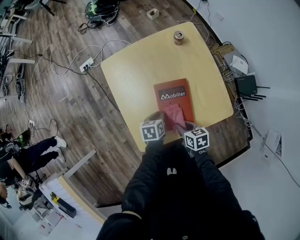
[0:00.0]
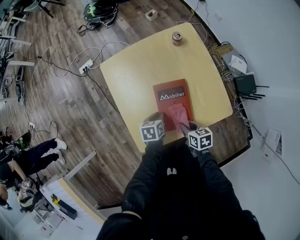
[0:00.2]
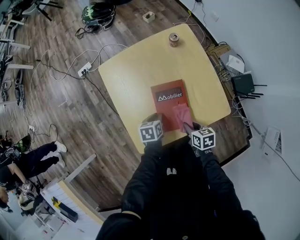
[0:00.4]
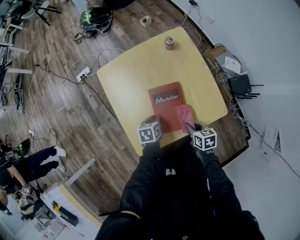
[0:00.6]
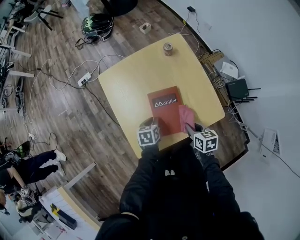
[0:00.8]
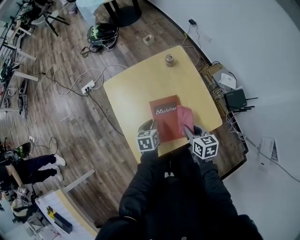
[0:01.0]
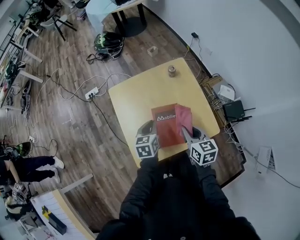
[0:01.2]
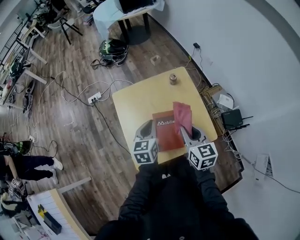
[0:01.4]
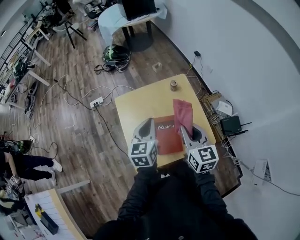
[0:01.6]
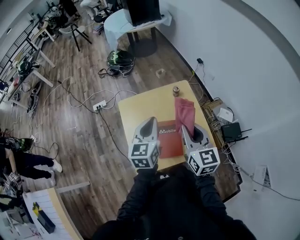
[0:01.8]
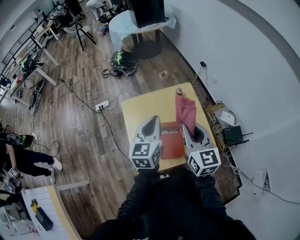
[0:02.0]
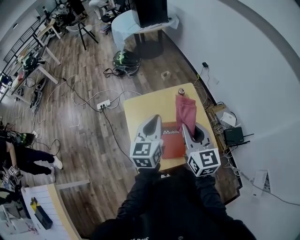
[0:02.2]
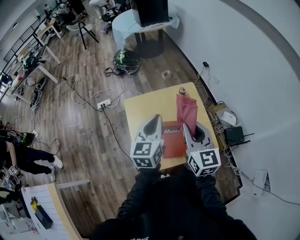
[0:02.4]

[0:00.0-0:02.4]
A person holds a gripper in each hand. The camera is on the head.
0:00.0 to 0:01.2: Both grippers move upward, some 20 cm. The left gripper changes its angle by approximately 20 degrees; the right gripper changes its angle by approximately 30 degrees.
0:01.2 to 0:02.4: The grippers both shift upward by some 25 cm. The left gripper changes its angle by roughly 30 degrees, while the right gripper changes its angle by some 30 degrees.

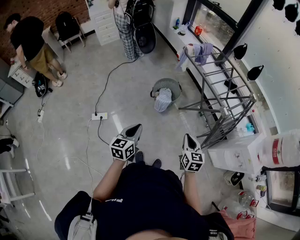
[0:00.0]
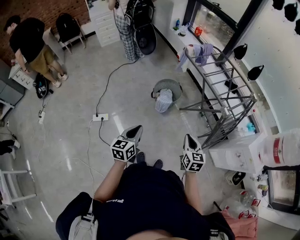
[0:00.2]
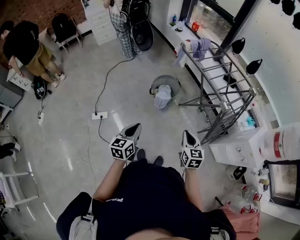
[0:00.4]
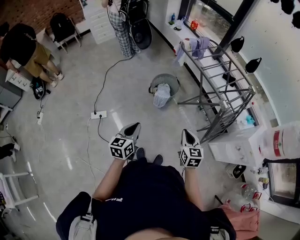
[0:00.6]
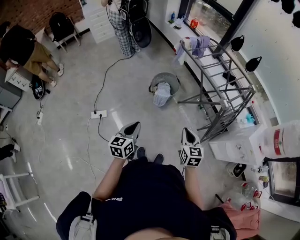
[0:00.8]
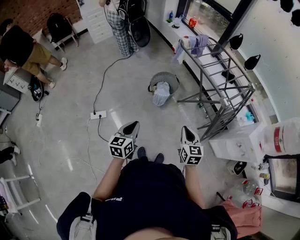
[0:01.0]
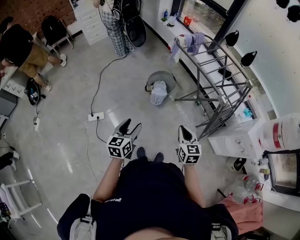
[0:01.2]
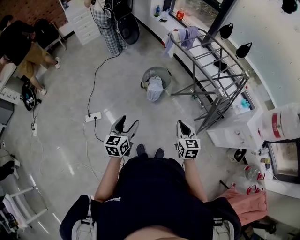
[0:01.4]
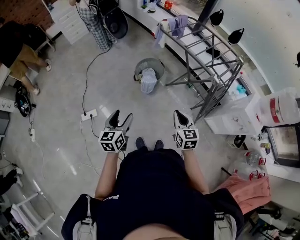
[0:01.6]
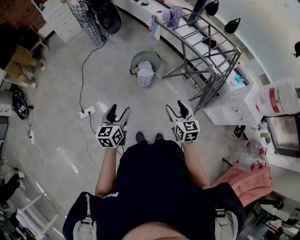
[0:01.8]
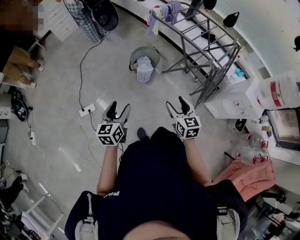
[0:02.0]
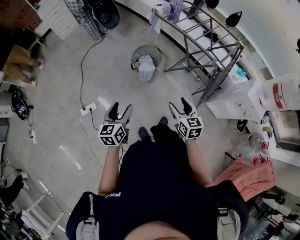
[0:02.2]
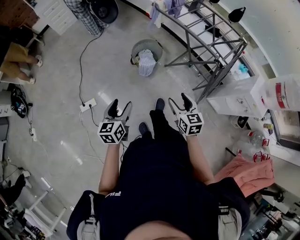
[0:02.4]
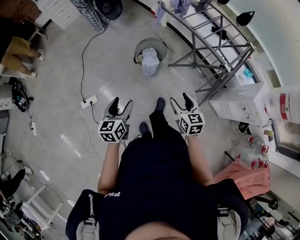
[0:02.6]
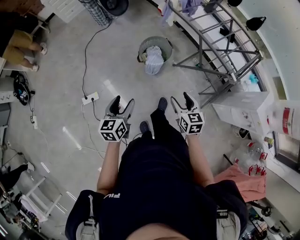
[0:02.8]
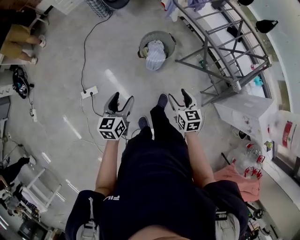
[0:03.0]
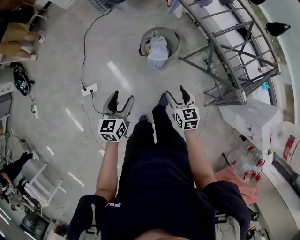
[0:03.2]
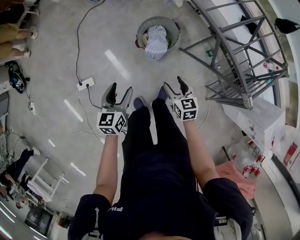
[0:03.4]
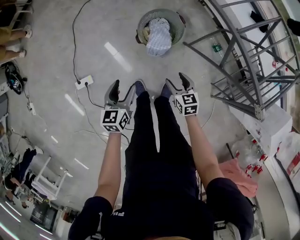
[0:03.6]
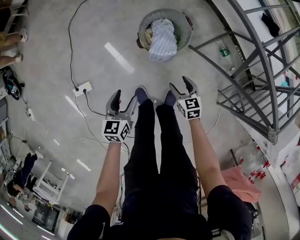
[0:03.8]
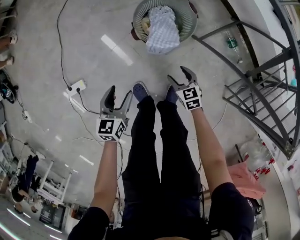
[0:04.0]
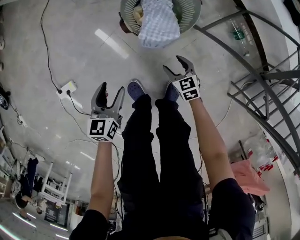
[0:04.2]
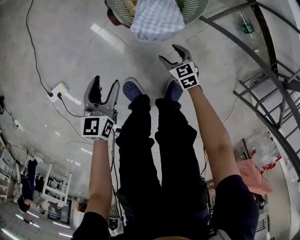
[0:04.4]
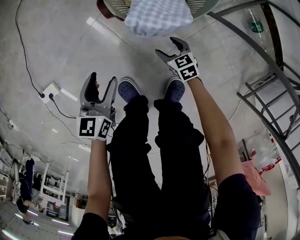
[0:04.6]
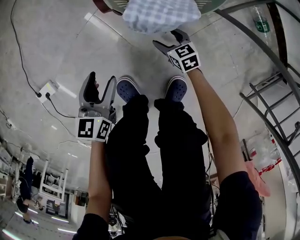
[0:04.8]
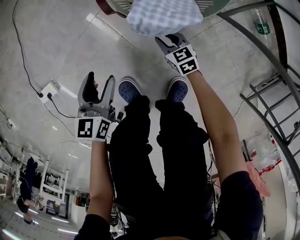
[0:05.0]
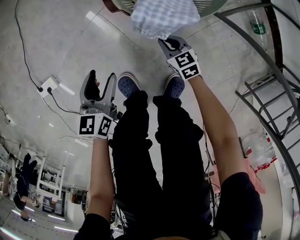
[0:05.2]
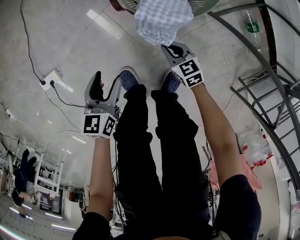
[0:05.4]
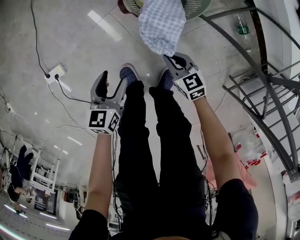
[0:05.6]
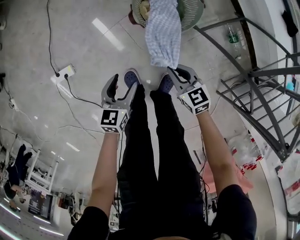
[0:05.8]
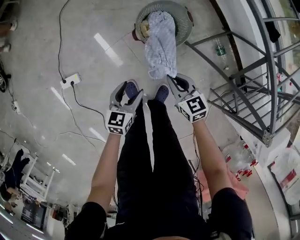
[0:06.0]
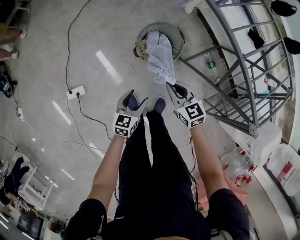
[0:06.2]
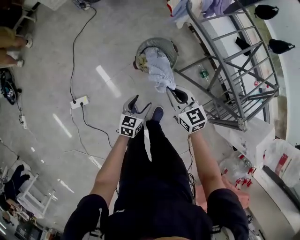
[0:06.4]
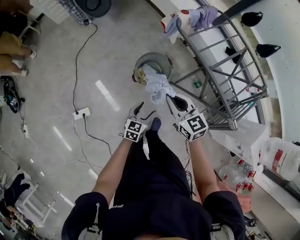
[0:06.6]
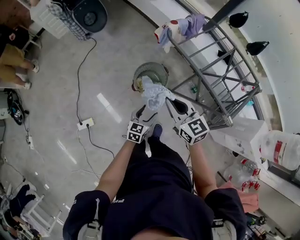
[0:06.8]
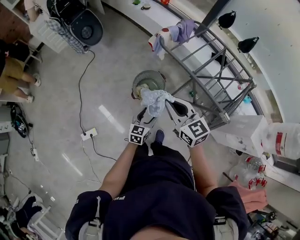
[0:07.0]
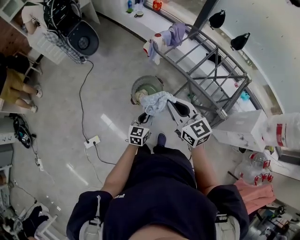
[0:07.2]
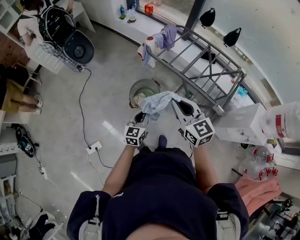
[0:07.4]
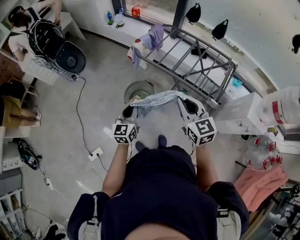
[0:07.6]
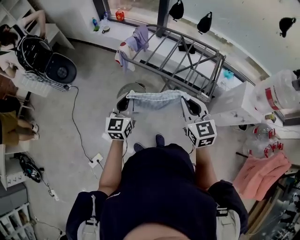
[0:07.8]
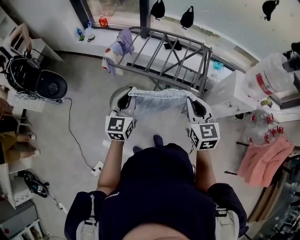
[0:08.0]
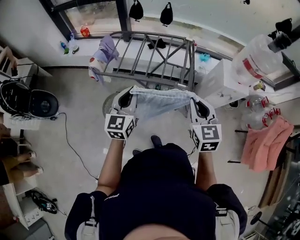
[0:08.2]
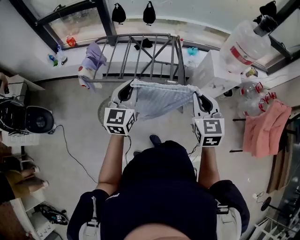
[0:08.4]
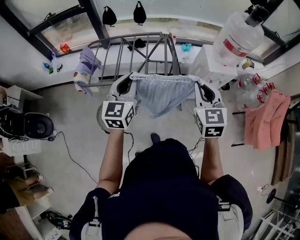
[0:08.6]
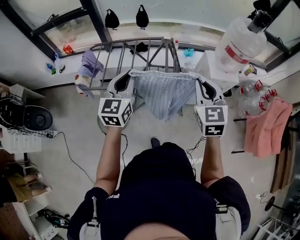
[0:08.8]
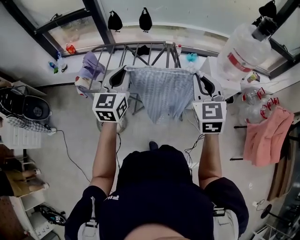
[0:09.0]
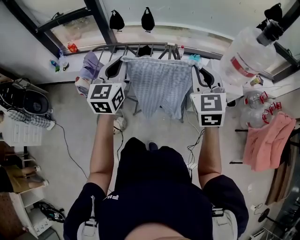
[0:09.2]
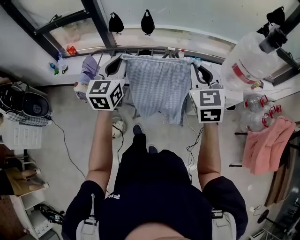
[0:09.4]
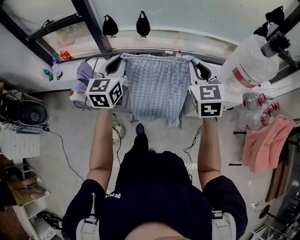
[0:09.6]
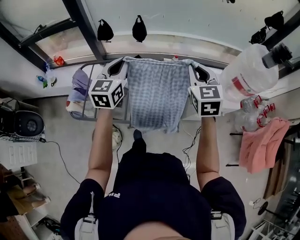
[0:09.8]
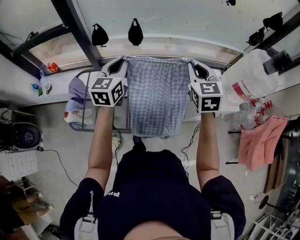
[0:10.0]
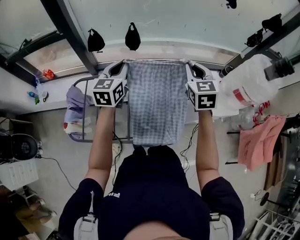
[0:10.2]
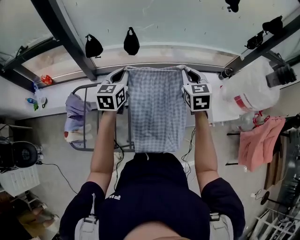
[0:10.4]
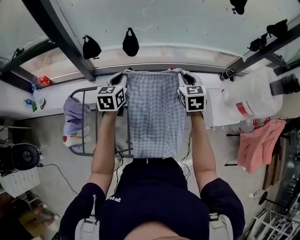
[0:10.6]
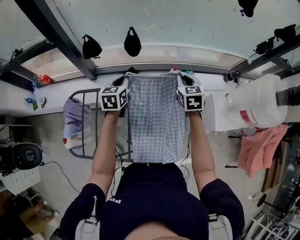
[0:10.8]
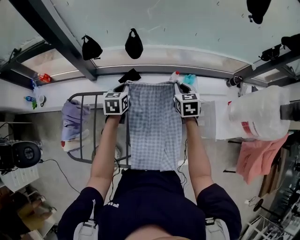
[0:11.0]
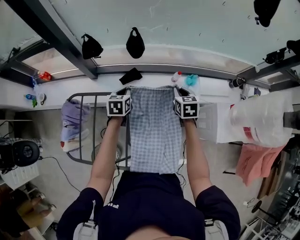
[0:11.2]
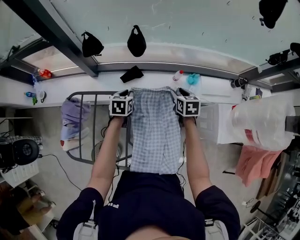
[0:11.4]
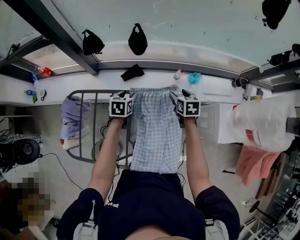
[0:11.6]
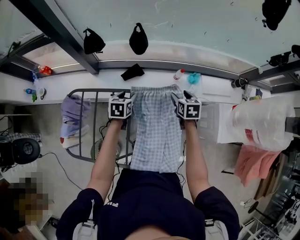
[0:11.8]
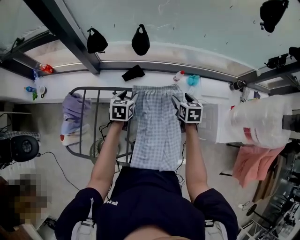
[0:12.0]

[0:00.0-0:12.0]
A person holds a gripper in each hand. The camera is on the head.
0:00.0 to 0:01.6: The grippers both shift to the left by approximately 5 cm. The left gripper opens.
0:01.6 to 0:03.0: The grippers both shift forward and downward by approximately 20 cm. The right gripper opens up.
0:03.0 to 0:04.4: The two grippers go some 60 cm downward. The right gripper rotates about 20 degrees.
0:04.4 to 0:06.0: The right gripper shifts some 40 cm upward, and closes its fingers, while the left gripper shifts roughly 20 cm upward.
0:06.0 to 0:07.6: The two grippers go some 50 cm upward. The left gripper rotates some 30 degrees, and closes. Meanwhile the right gripper changes its angle by roughly 40 degrees.
0:07.6 to 0:09.0: The right gripper ends up about 35 cm from where it was, and rotates about 50 degrees; the left gripper moves roughly 40 cm, and rotates some 30 degrees.
0:09.0 to 0:10.4: The two grippers travel together, forward, approximately 40 cm.
0:10.4 to 0:12.0: The grippers both shift downward by approximately 20 cm. The left gripper turns by approximately 30 degrees, and opens its fingers; the right gripper rotates about 30 degrees, and opens.

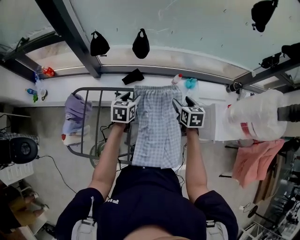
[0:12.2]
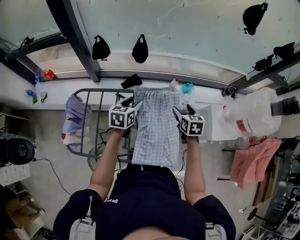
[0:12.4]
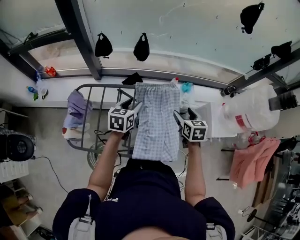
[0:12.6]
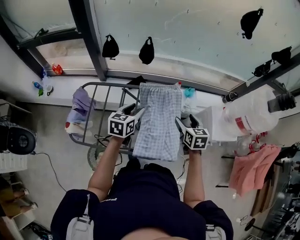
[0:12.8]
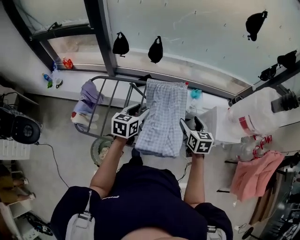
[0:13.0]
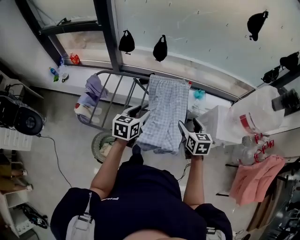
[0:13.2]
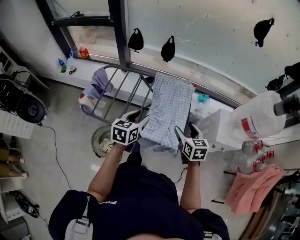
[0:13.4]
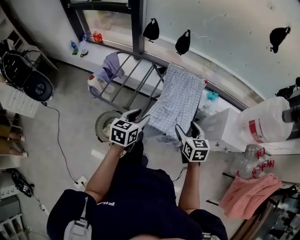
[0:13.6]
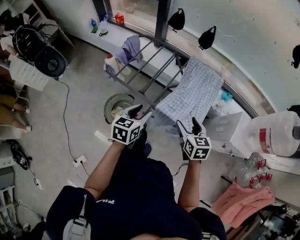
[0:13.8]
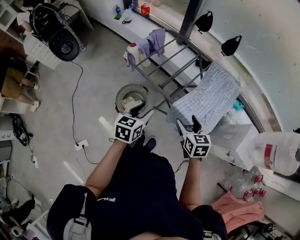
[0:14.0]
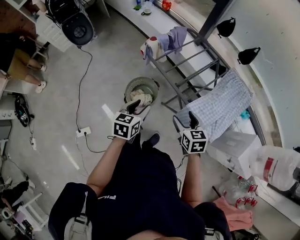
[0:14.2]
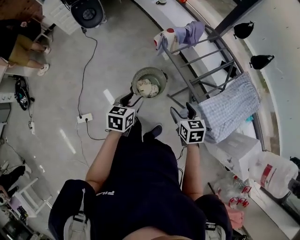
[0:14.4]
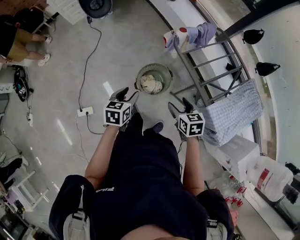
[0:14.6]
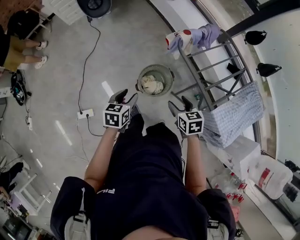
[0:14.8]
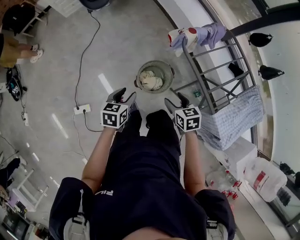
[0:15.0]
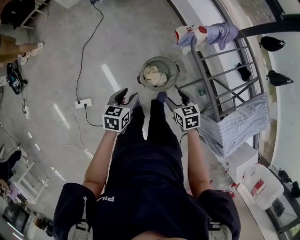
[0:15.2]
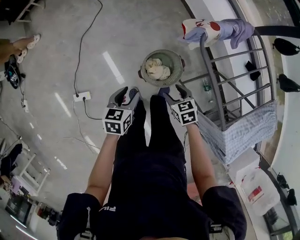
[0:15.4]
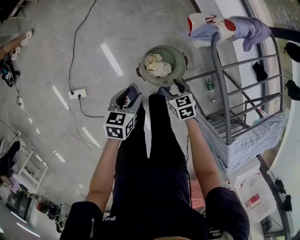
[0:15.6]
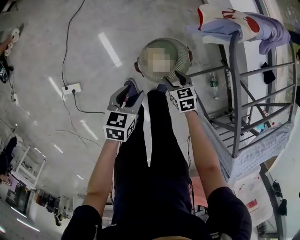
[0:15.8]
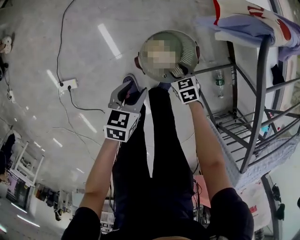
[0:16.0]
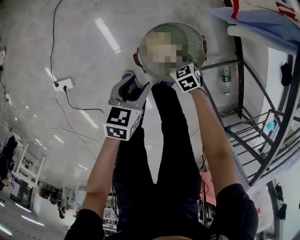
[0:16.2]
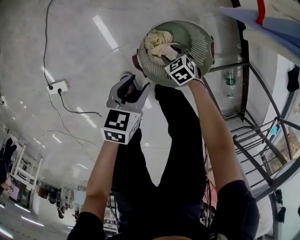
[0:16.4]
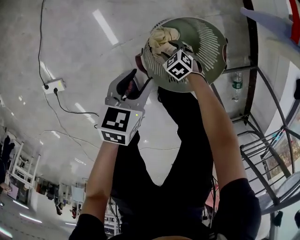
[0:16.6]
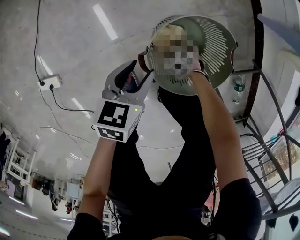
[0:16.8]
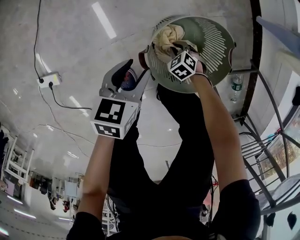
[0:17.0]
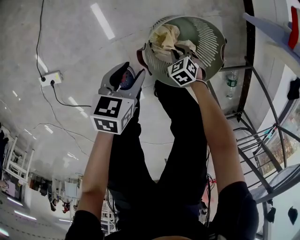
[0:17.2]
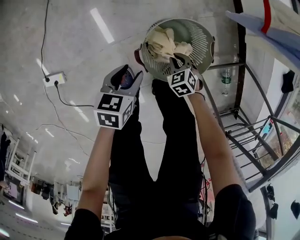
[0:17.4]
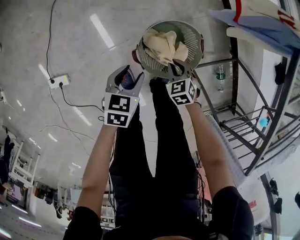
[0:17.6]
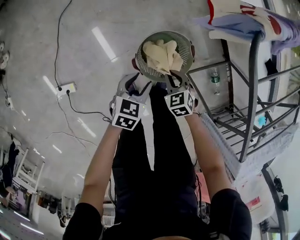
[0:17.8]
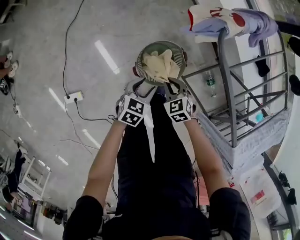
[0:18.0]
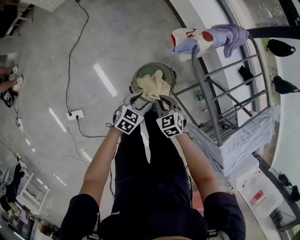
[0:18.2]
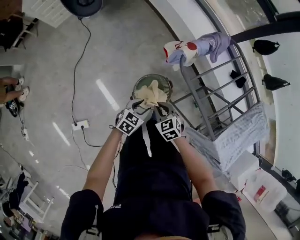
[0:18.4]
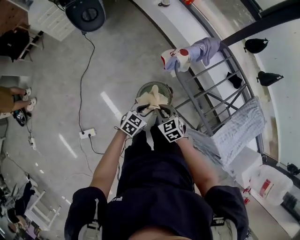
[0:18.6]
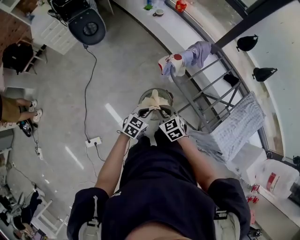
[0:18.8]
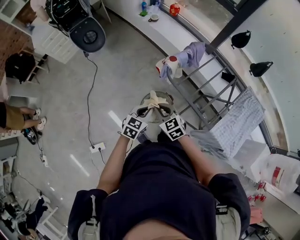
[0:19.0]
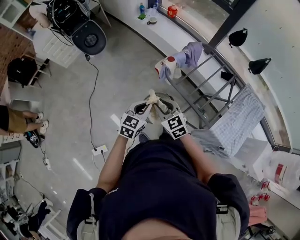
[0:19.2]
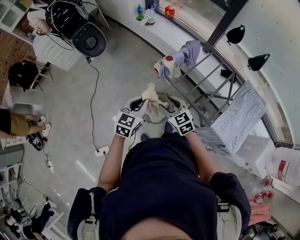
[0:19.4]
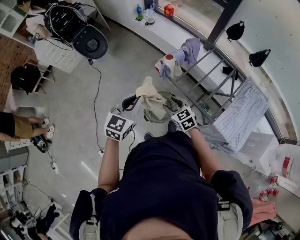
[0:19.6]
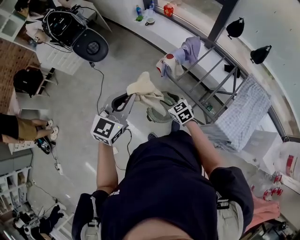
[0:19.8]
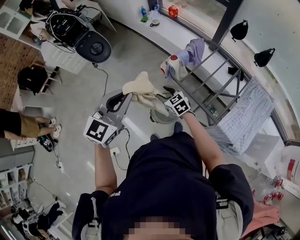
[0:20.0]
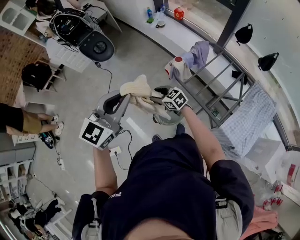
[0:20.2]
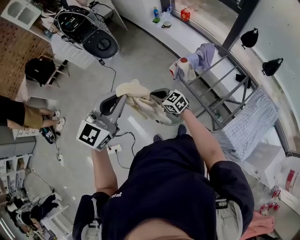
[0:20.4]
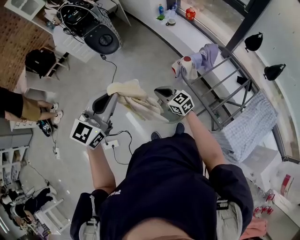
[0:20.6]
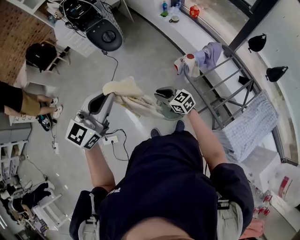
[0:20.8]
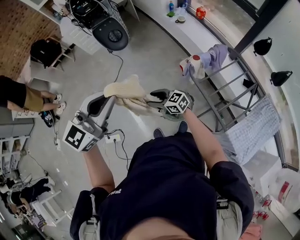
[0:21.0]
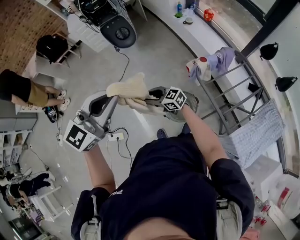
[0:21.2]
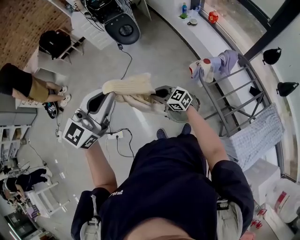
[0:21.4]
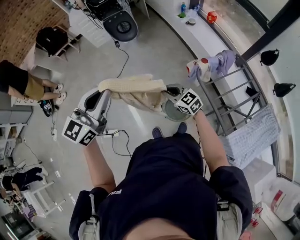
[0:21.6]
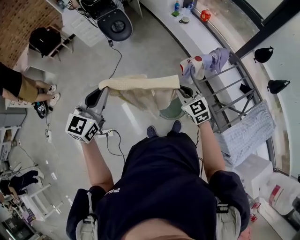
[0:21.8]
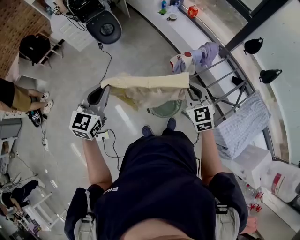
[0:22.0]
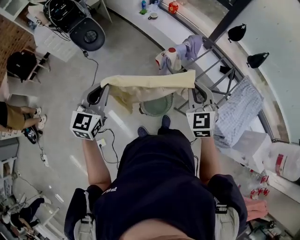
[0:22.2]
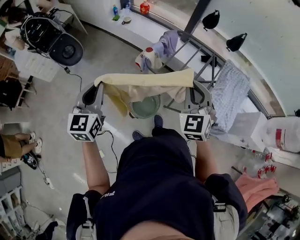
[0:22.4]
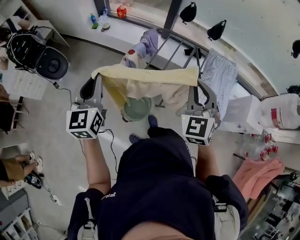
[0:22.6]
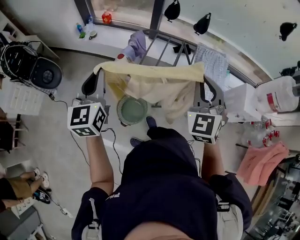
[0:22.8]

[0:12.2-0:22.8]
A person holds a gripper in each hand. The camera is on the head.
0:12.2 to 0:13.8: The left gripper moves roughly 40 cm, and swivels approximately 20 degrees. The right gripper changes place by approximately 40 cm, and swivels some 30 degrees.
0:13.8 to 0:15.2: The pair of grippers is taken some 40 cm. The left gripper changes its angle by some 40 degrees; the right gripper changes its angle by approximately 50 degrees.
0:15.2 to 0:16.8: Both grippers travel together downward, some 60 cm. The right gripper twists roughly 40 degrees counterclockwise, seen from behind.
0:16.8 to 0:18.2: The right gripper is displaced upward by some 60 cm, changes its angle by approximately 40 degrees, and closes its fingers. Meanwhile the left gripper is displaced upward by roughly 30 cm, and changes its angle by roughly 30 degrees.
0:18.2 to 0:19.8: The left gripper moves upward, about 50 cm, changes its angle by about 40 degrees, and closes its fingers. Meanwhile the right gripper heads upward, covering approximately 20 cm, rotates roughly 20 degrees, and opens up.
0:19.8 to 0:21.2: The right gripper changes place by approximately 20 cm, changes its angle by roughly 50 degrees, and closes, then reopens; the left gripper moves roughly 20 cm.
0:21.2 to 0:22.8: The left gripper reaches some 10 cm downward, then returns; the right gripper moves approximately 50 cm, changes its angle by roughly 120 degrees, and closes.
